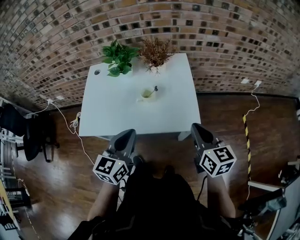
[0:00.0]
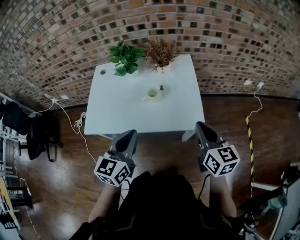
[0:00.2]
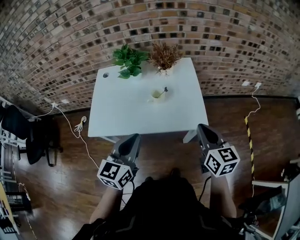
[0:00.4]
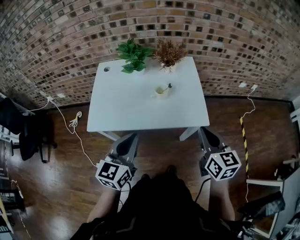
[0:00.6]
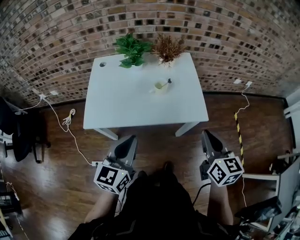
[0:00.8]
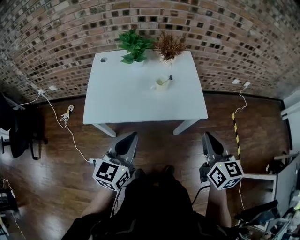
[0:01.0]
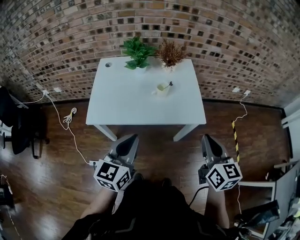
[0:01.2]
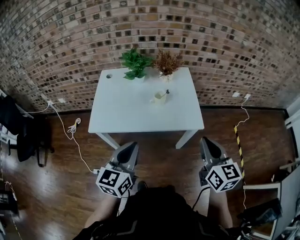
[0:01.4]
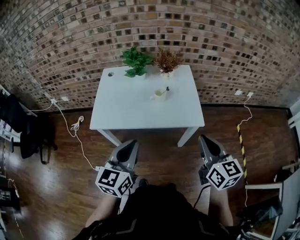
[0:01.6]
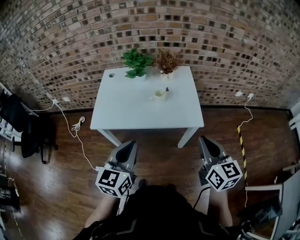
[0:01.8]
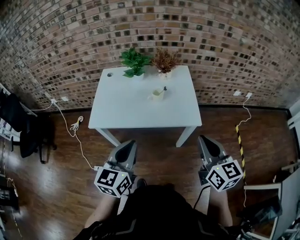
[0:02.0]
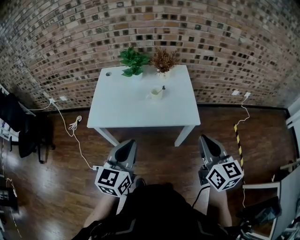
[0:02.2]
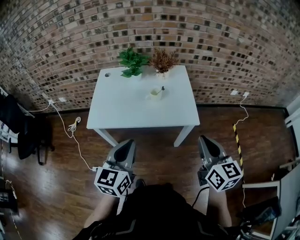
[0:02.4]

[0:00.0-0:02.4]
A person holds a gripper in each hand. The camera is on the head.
0.0 to 1.2 s: The left gripper is displaced backward and to the left by approximately 15 cm, while the right gripper travels backward, to the left and upward by some 15 cm.
1.2 to 2.4 s: The right gripper ends up roughly 5 cm from where it was; the left gripper shifts by some 5 cm.

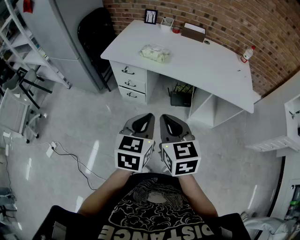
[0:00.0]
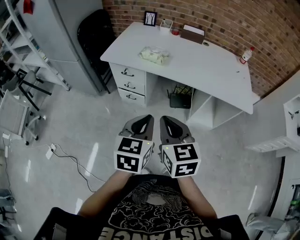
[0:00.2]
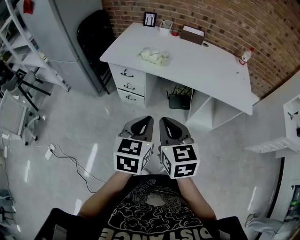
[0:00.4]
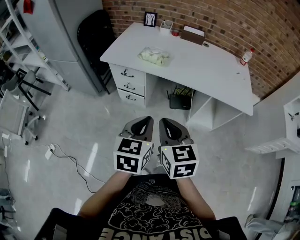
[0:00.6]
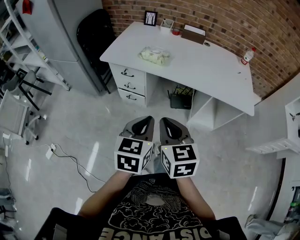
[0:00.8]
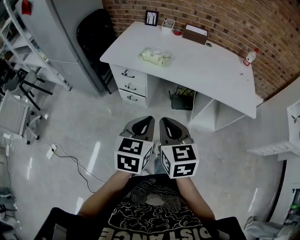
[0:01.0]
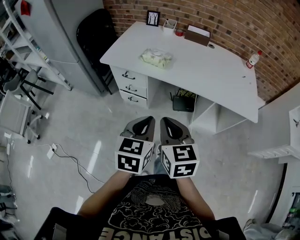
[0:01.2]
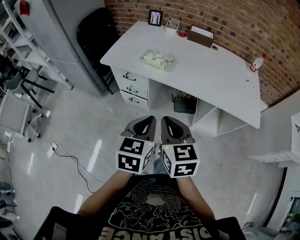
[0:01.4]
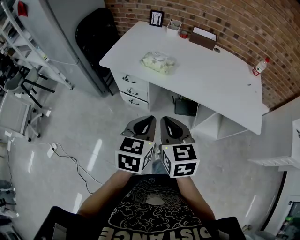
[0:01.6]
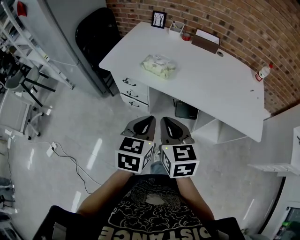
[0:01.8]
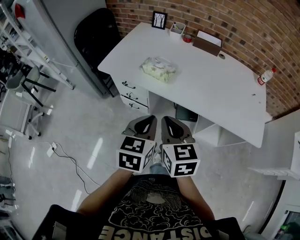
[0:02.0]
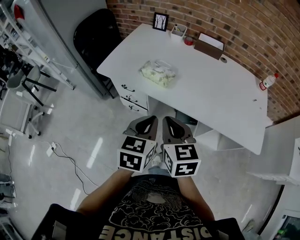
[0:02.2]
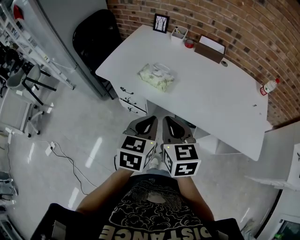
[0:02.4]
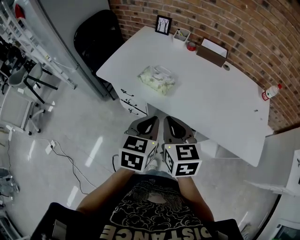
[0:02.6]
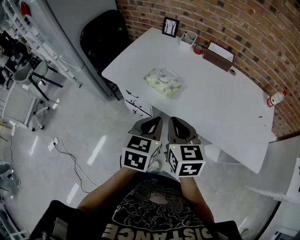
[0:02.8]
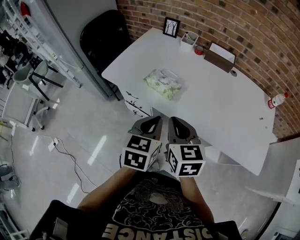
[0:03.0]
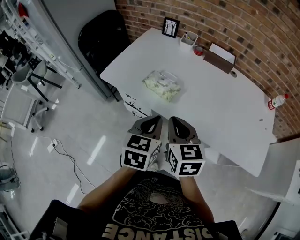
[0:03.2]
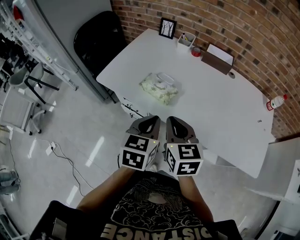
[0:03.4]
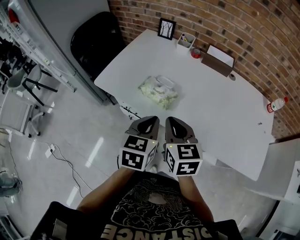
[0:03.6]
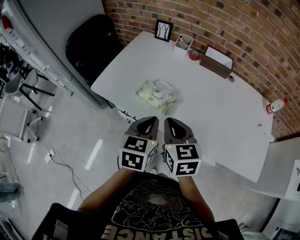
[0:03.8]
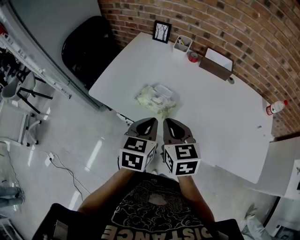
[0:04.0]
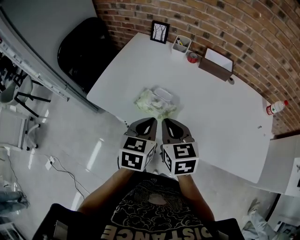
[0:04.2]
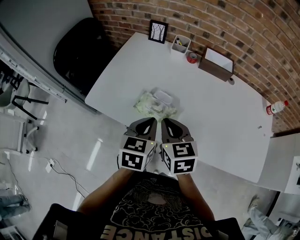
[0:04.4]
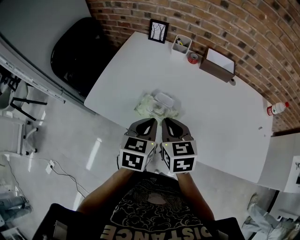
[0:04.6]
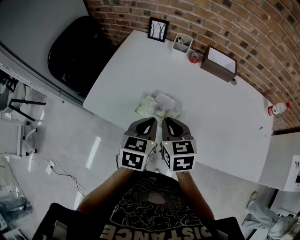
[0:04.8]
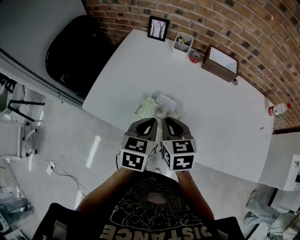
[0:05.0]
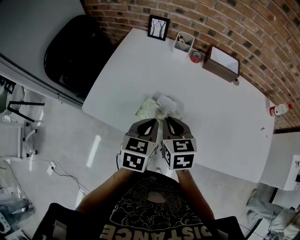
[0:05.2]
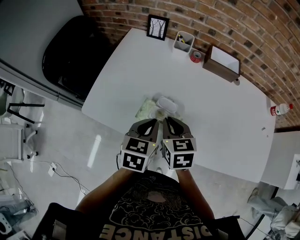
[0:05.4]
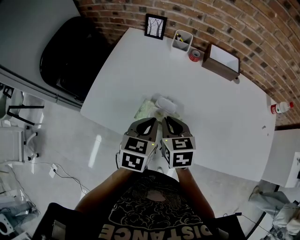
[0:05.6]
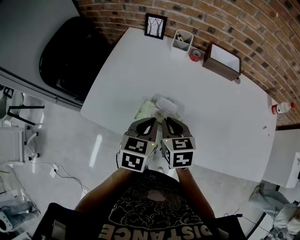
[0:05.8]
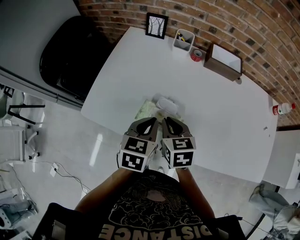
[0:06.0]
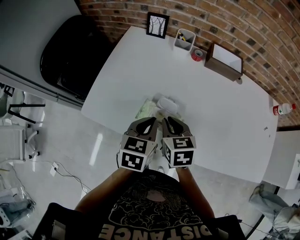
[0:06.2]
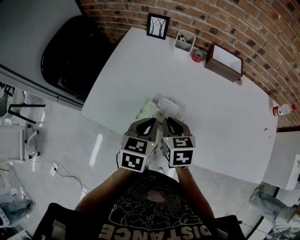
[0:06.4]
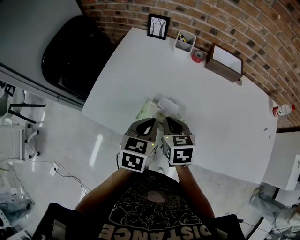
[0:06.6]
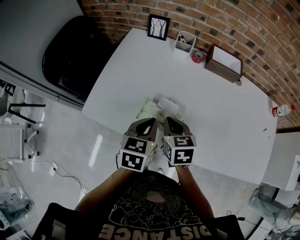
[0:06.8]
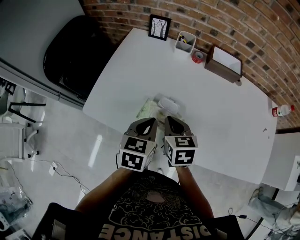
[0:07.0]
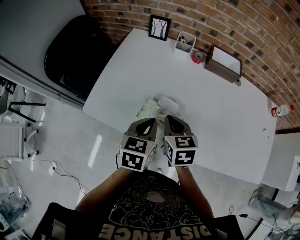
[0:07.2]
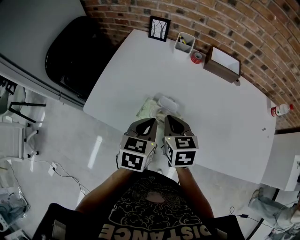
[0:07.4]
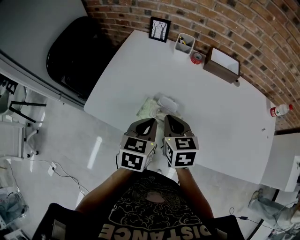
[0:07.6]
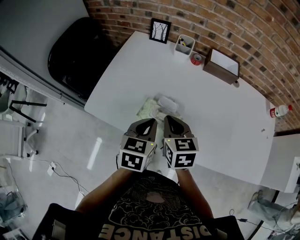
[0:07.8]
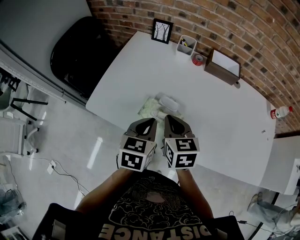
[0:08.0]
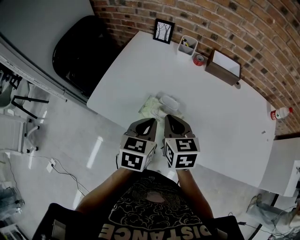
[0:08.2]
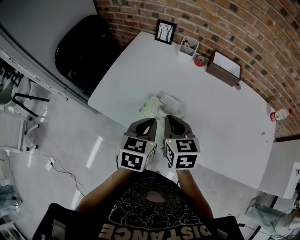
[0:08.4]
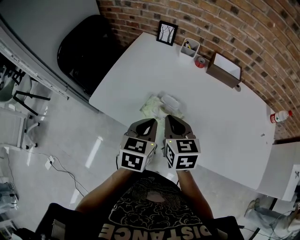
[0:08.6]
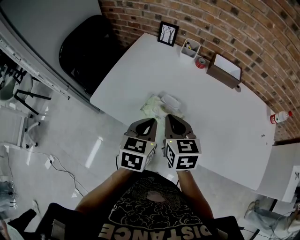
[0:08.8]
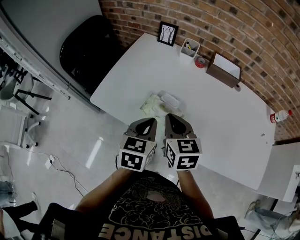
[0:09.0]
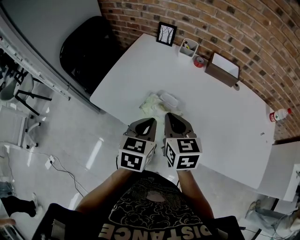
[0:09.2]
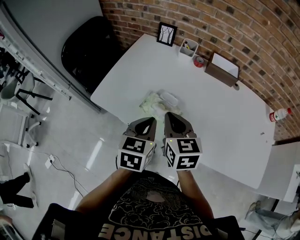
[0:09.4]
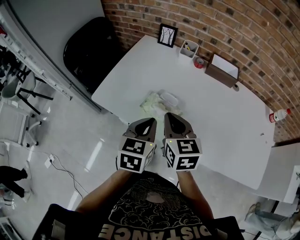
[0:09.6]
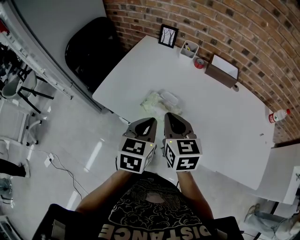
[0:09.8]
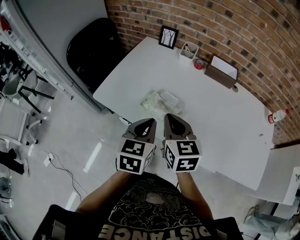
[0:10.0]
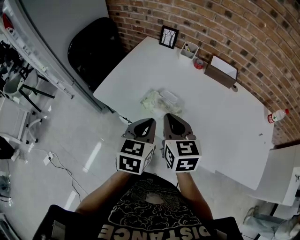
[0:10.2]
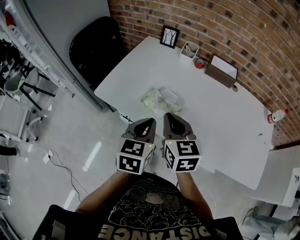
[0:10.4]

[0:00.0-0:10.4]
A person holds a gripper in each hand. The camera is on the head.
0.0 to 1.4 s: Both grippers move forward, about 10 cm.
1.4 to 3.0 s: The two grippers go approximately 20 cm forward.
3.0 to 4.4 s: The two grippers go roughly 15 cm forward.
4.4 to 6.0 s: The left gripper travels forward by approximately 5 cm; the right gripper travels forward and downward by roughly 10 cm.
6.0 to 7.4 s: The grippers make only small movements.
7.4 to 9.0 s: The right gripper heads upward, covering roughly 5 cm.
9.0 to 10.4 s: Both grippers travel together backward, approximately 5 cm.

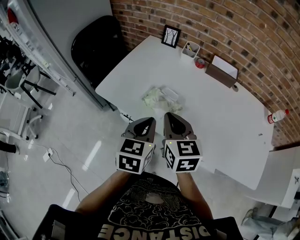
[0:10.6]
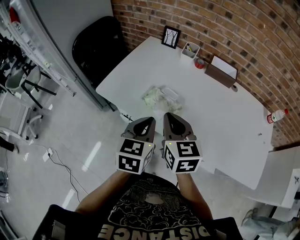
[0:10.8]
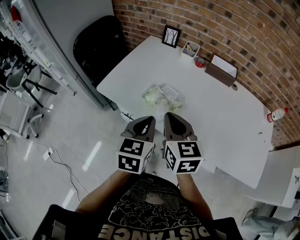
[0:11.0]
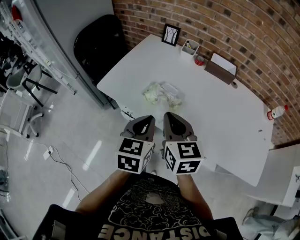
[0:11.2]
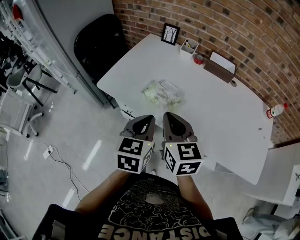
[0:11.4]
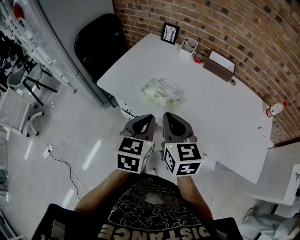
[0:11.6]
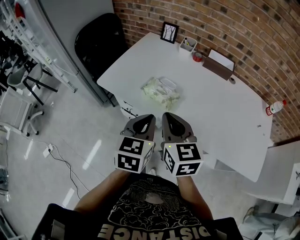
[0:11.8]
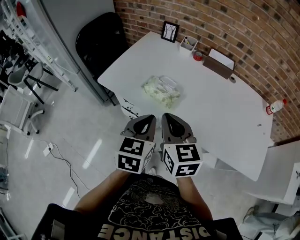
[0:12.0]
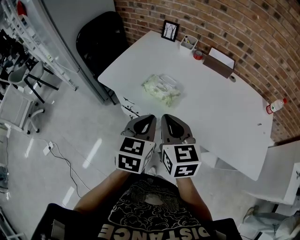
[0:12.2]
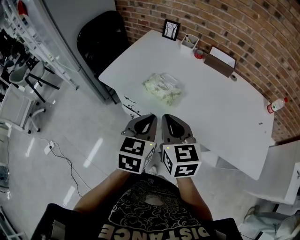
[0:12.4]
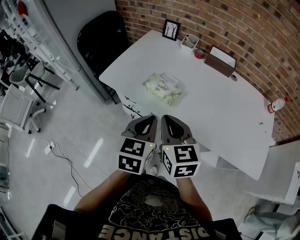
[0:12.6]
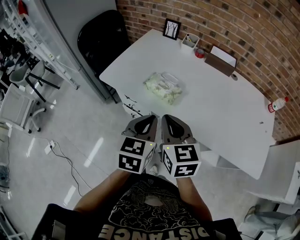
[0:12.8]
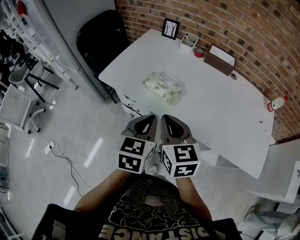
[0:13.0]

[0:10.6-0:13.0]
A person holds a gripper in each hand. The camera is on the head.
10.6 to 11.8 s: The two grippers go roughly 5 cm backward.
11.8 to 13.0 s: The grippers make only small movements.

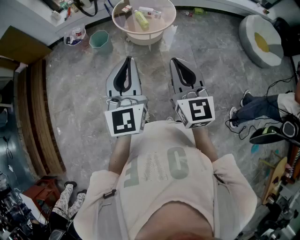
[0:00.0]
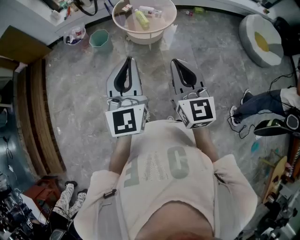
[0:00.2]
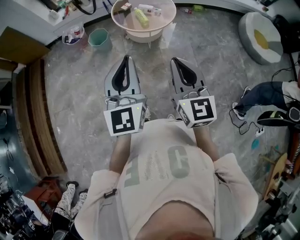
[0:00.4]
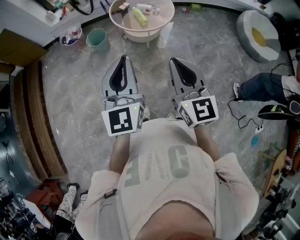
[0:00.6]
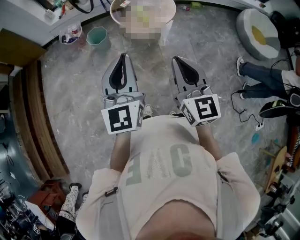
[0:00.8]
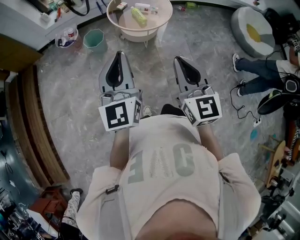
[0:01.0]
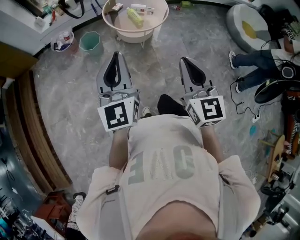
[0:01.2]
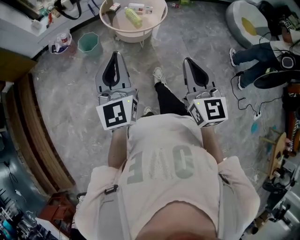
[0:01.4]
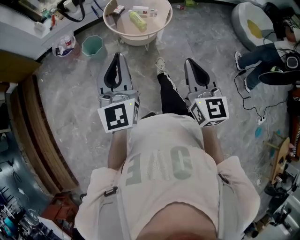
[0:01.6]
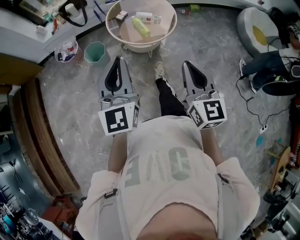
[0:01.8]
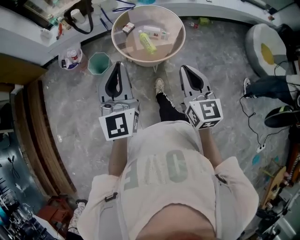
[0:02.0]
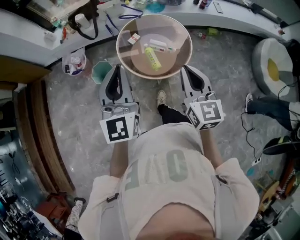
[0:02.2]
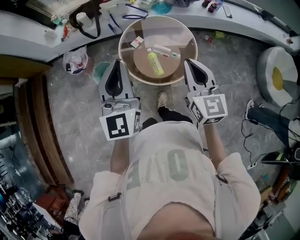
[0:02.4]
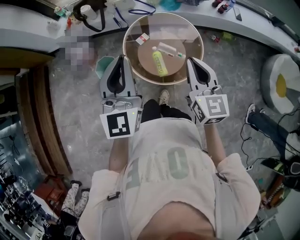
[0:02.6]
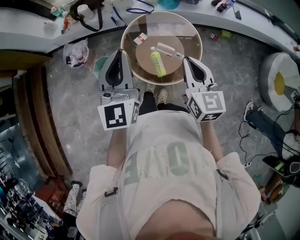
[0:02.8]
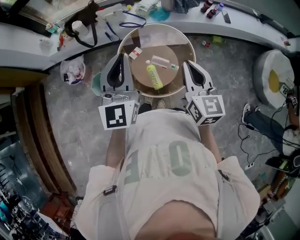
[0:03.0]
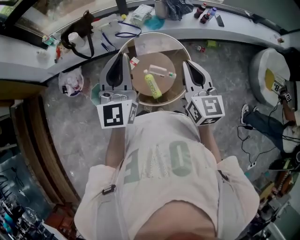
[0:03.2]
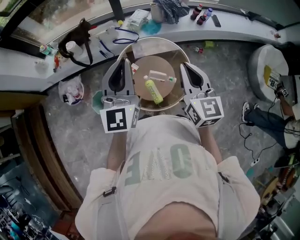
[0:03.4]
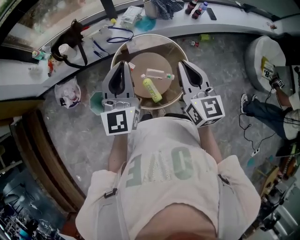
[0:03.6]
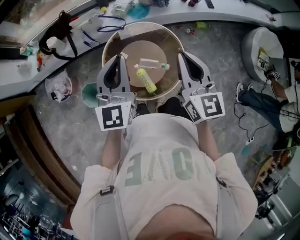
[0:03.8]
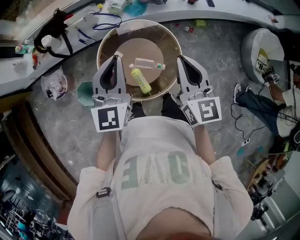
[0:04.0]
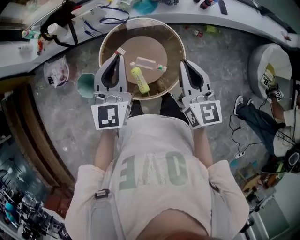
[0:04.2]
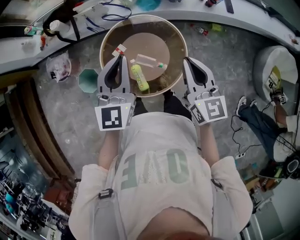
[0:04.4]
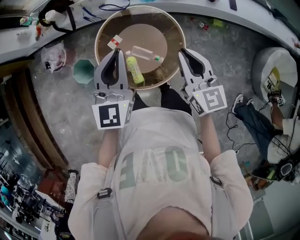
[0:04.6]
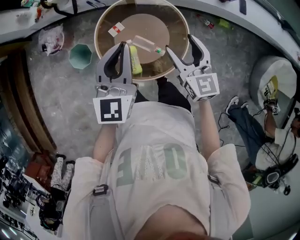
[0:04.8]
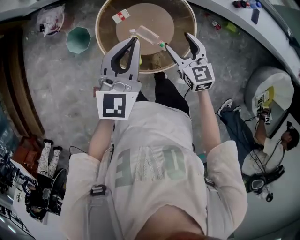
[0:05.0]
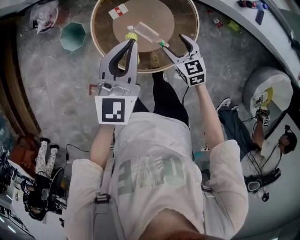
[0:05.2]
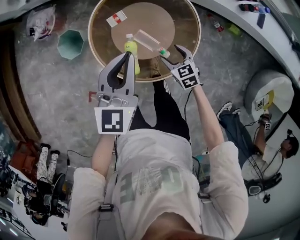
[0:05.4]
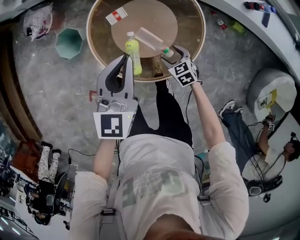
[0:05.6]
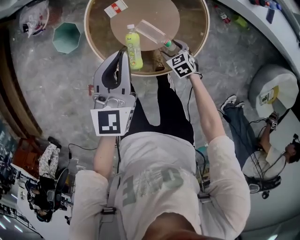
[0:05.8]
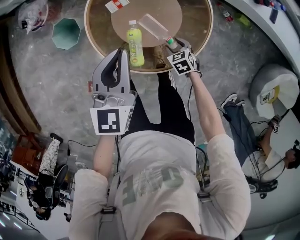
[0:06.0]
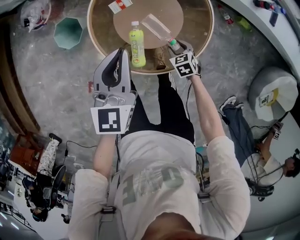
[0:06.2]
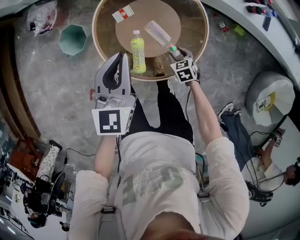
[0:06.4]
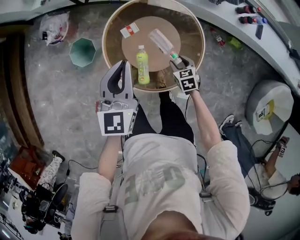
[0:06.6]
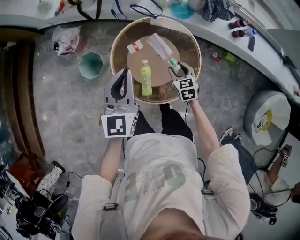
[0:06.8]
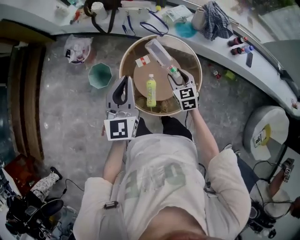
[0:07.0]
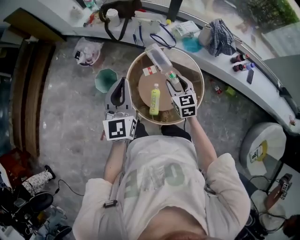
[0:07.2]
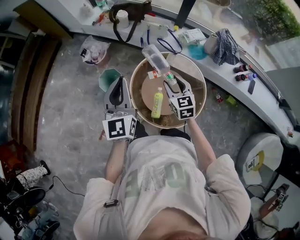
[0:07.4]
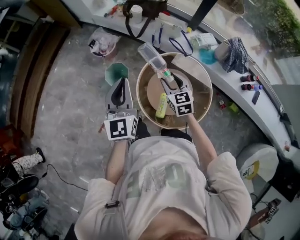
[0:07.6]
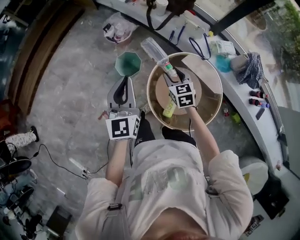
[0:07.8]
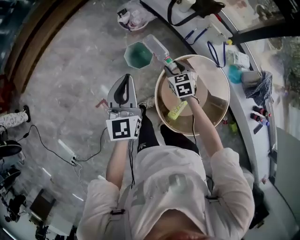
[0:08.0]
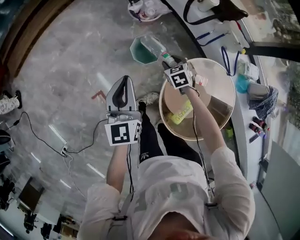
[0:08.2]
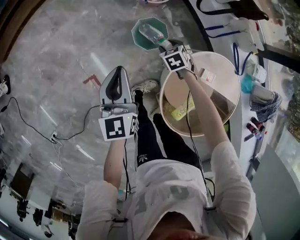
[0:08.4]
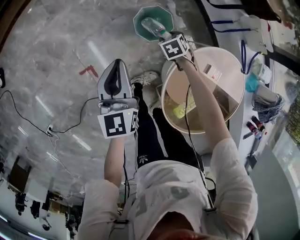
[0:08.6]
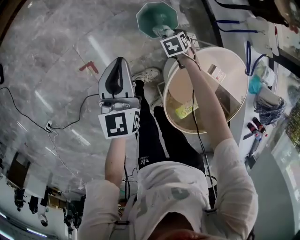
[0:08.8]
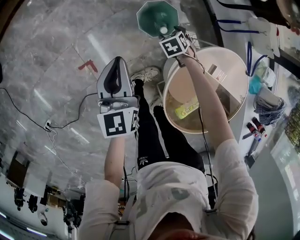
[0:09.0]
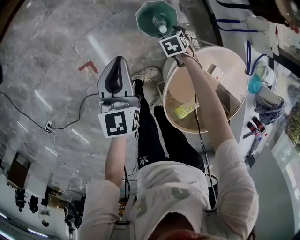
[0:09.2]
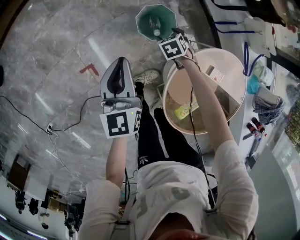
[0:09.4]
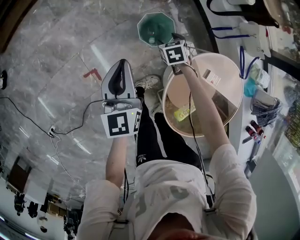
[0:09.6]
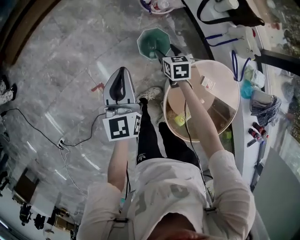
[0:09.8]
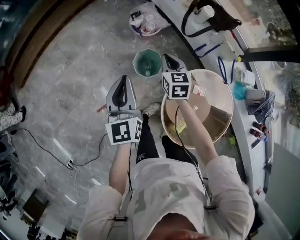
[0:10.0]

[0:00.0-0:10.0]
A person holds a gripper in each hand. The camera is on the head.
0.0 to 1.4 s: The left gripper shifts roughly 15 cm to the left and forward.
1.4 to 2.8 s: The pair of grippers is taken forward, about 50 cm. The right gripper swivels about 20 degrees.
2.8 to 4.2 s: The right gripper heads forward and to the right, covering about 15 cm, while the left gripper travels forward, to the right and downward by about 20 cm.
4.2 to 5.8 s: The left gripper moves downward, about 20 cm, and changes its angle by about 20 degrees, while the right gripper is displaced downward by approximately 50 cm, tilts its fingers about 50 degrees downward, and opens its fingers.
5.8 to 7.2 s: The right gripper moves upward and forward, about 35 cm, tips its fingers upward by roughly 30 degrees, and closes. Meanwhile the left gripper is displaced upward and to the left by some 20 cm, and swivels about 20 degrees.
7.2 to 8.6 s: The left gripper changes place by some 40 cm, and turns by some 50 degrees. The right gripper shifts by some 50 cm, and tilts its fingers roughly 40 degrees downward.
8.6 to 10.0 s: The left gripper is displaced upward by some 15 cm, while the right gripper heads upward, covering about 30 cm, tips its fingers upward by some 40 degrees, and closes.
